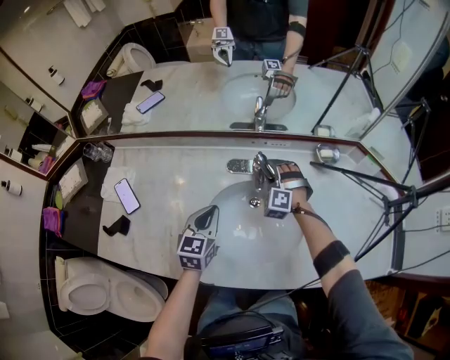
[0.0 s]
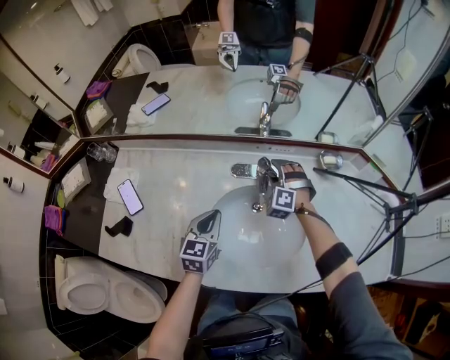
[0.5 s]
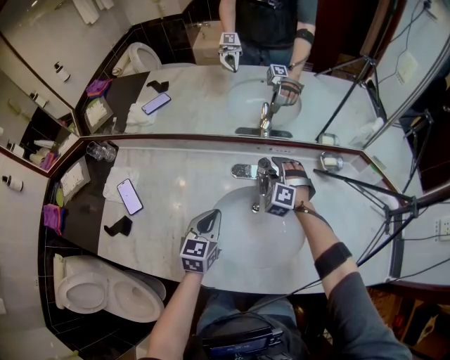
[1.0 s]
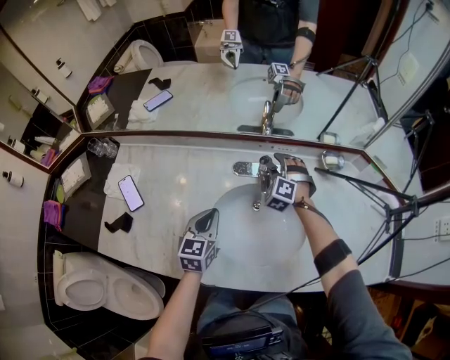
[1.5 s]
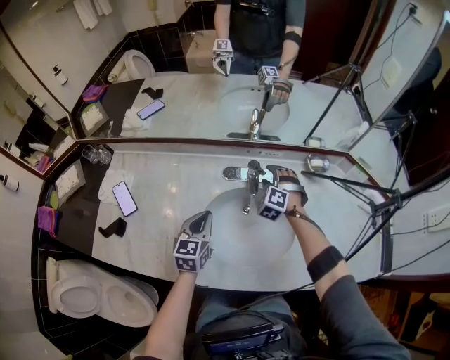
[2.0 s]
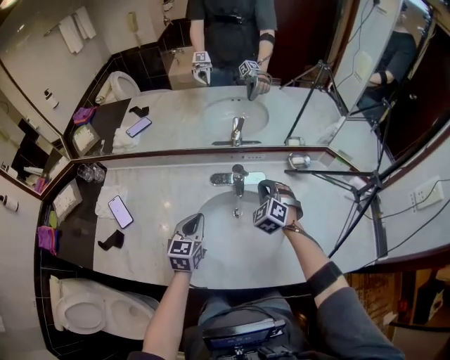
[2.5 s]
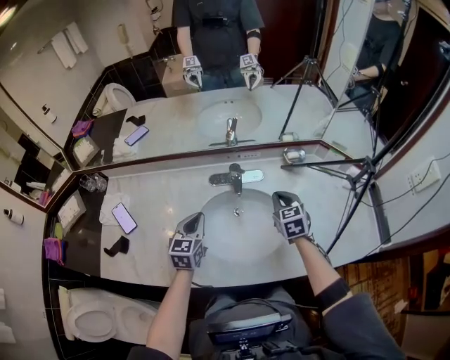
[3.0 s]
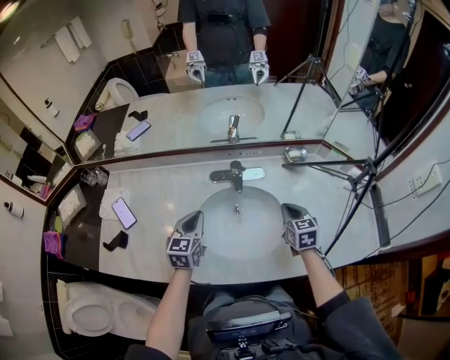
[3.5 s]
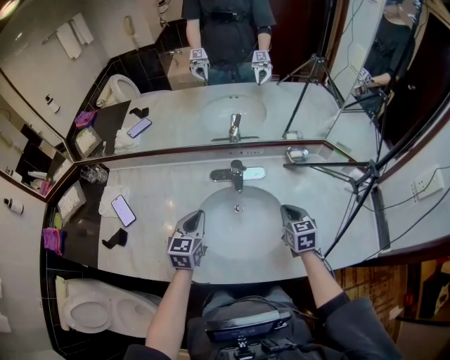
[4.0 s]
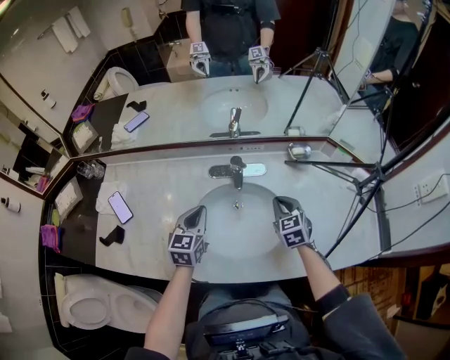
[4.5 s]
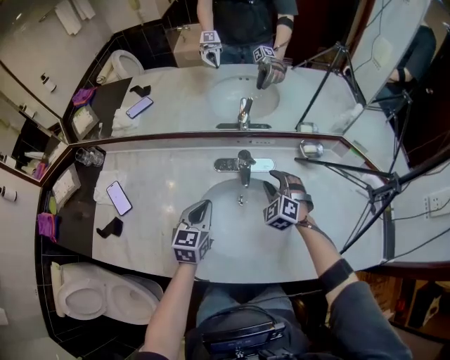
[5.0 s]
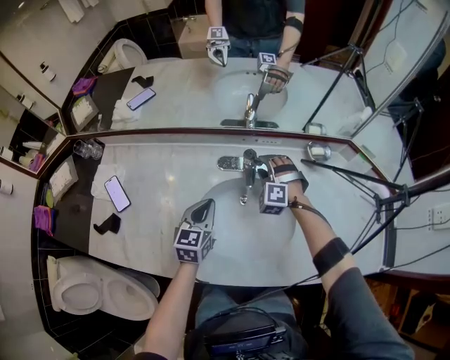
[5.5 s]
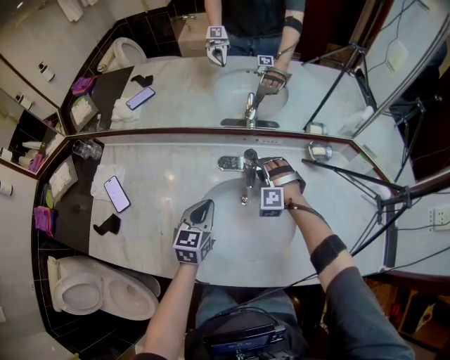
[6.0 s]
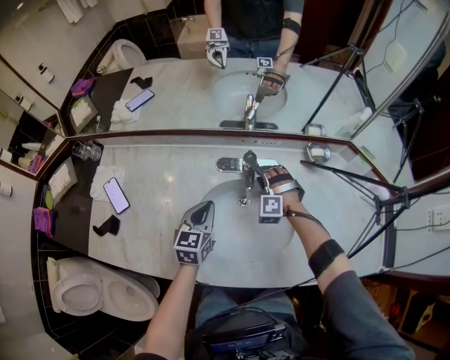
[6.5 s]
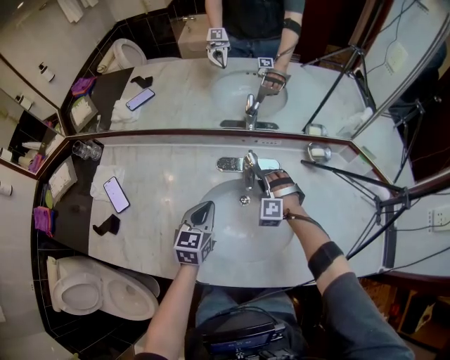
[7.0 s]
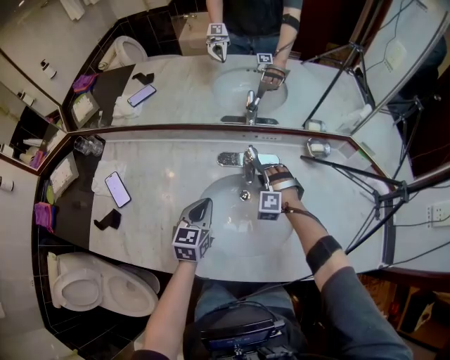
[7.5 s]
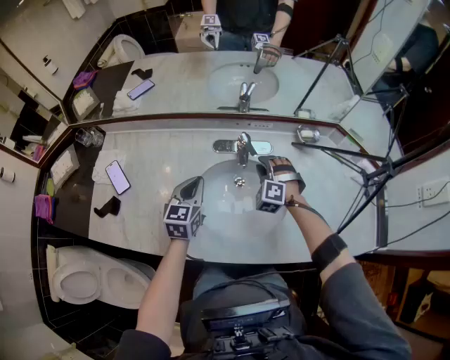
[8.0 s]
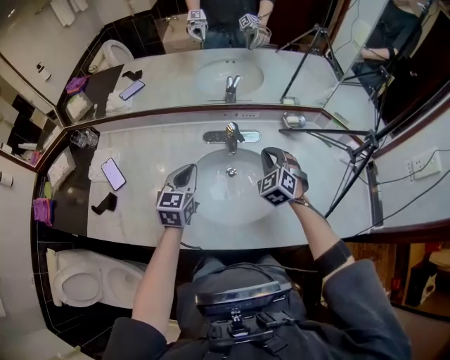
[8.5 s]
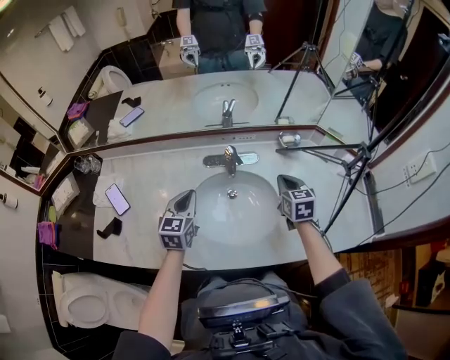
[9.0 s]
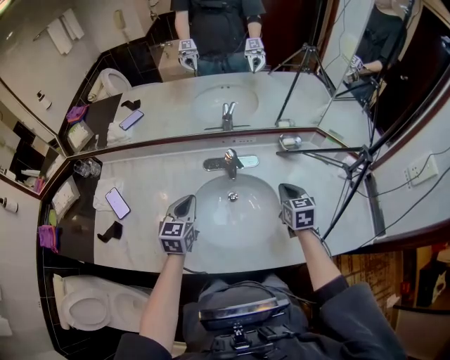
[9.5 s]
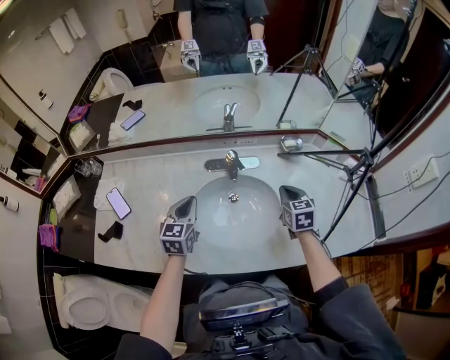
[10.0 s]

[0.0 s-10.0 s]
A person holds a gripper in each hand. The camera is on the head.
0.0 to 2.0 s: The grippers stay close to where they were, moving slightly.
2.0 to 4.0 s: The right gripper goes roughly 20 cm backward and to the right, rotates around the line of its fingers by roughly 70 degrees, clockwise from behind, and closes its fingers.
4.0 to 6.0 s: The left gripper is displaced downward and forward by some 10 cm. Meanwhile the right gripper shifts about 25 cm forward, to the left and downward, rotates around the line of its fingers by some 90 degrees, counterclockwise from behind, and opens its fingers.
6.0 to 8.0 s: The right gripper travels backward by roughly 10 cm.
8.0 to 10.0 s: The right gripper heads to the right, backward and upward, covering roughly 15 cm, rolls clockwise, seen from behind, by some 70 degrees, and closes.

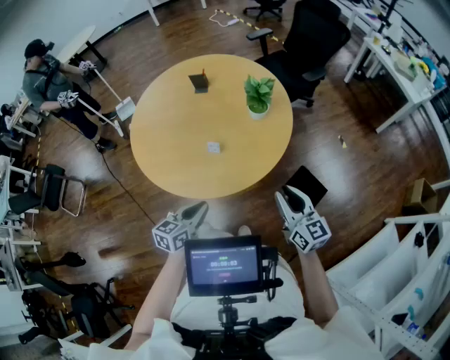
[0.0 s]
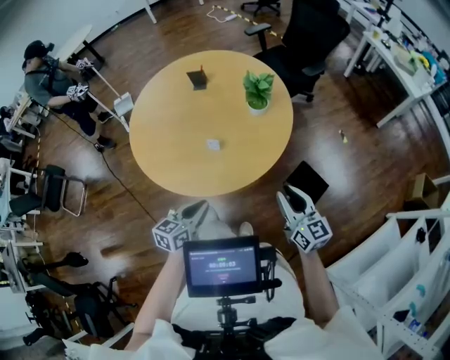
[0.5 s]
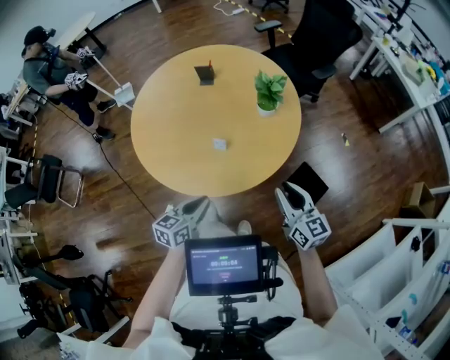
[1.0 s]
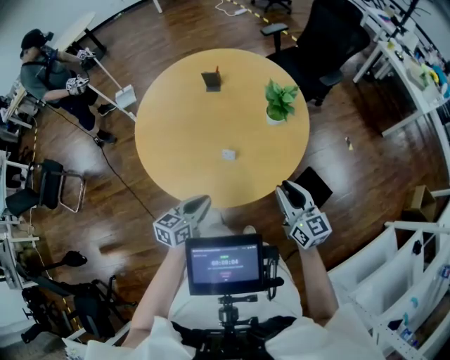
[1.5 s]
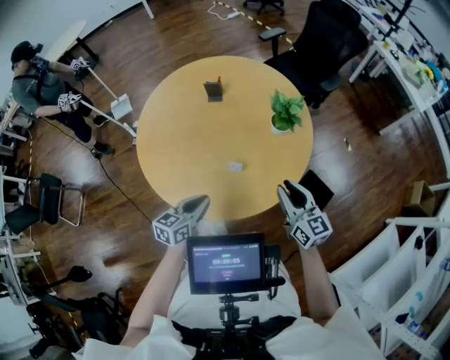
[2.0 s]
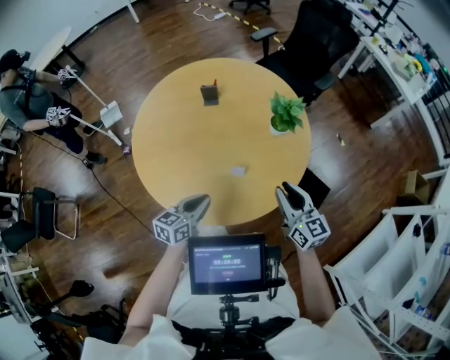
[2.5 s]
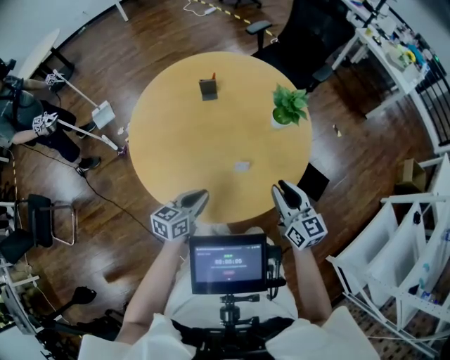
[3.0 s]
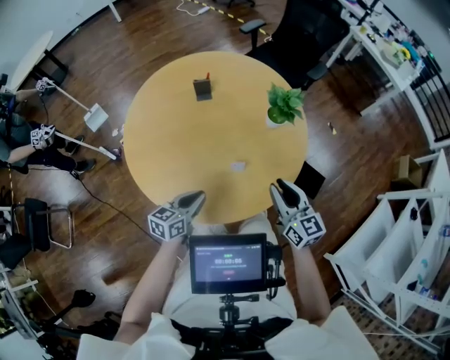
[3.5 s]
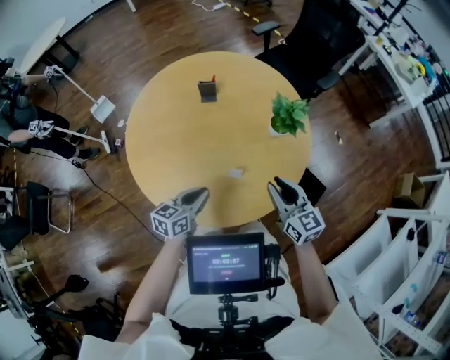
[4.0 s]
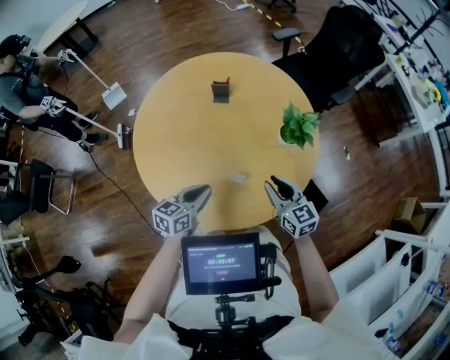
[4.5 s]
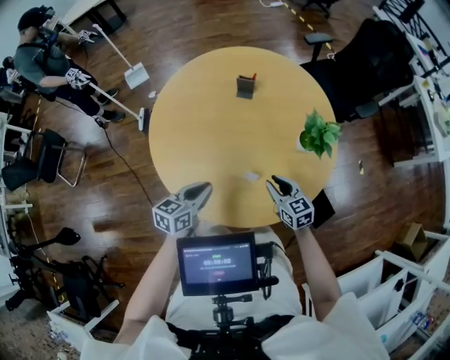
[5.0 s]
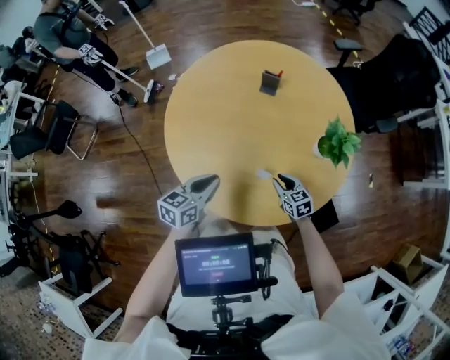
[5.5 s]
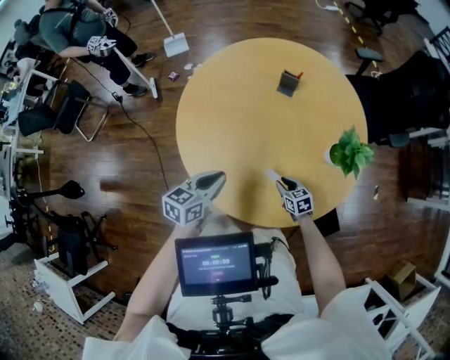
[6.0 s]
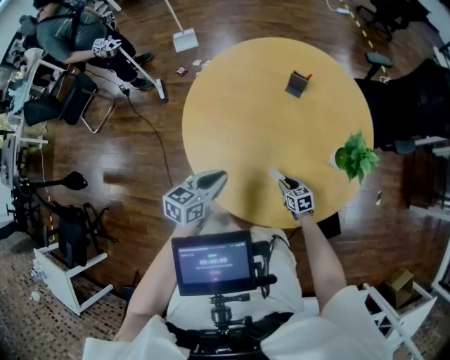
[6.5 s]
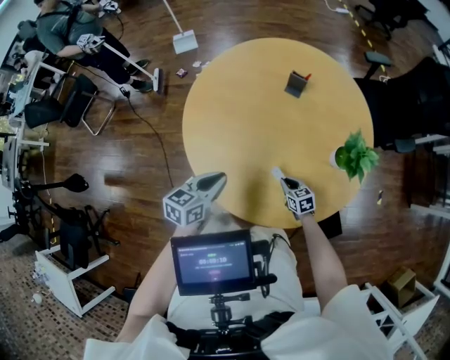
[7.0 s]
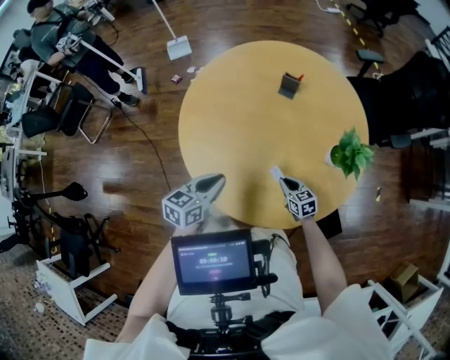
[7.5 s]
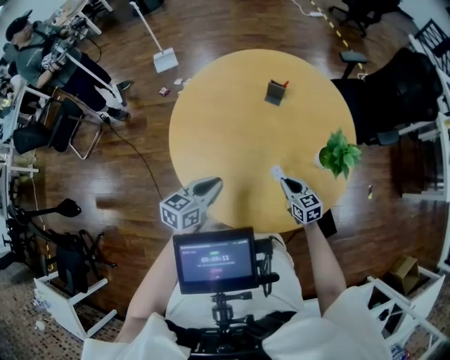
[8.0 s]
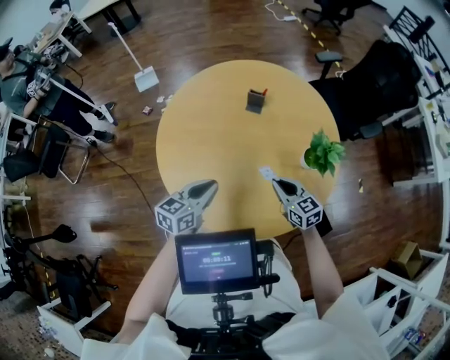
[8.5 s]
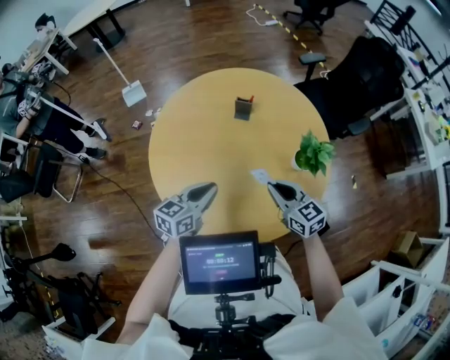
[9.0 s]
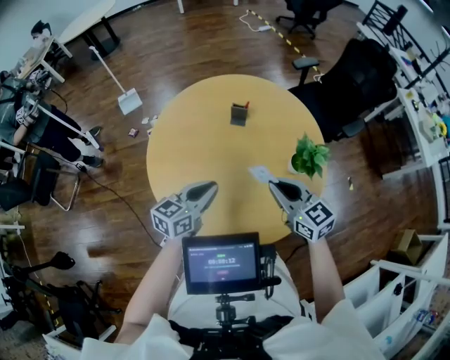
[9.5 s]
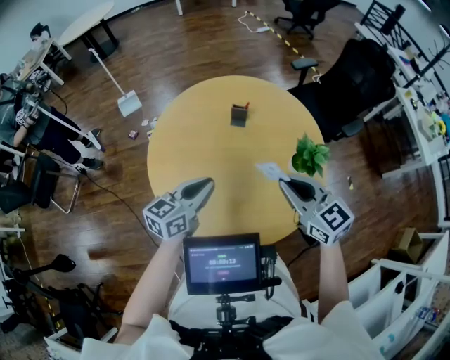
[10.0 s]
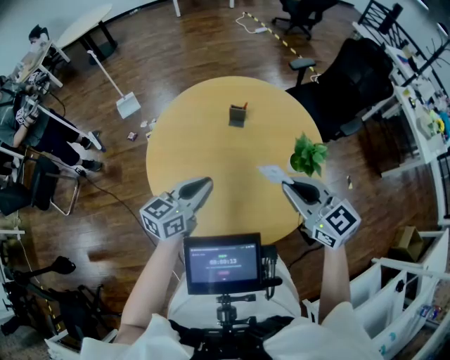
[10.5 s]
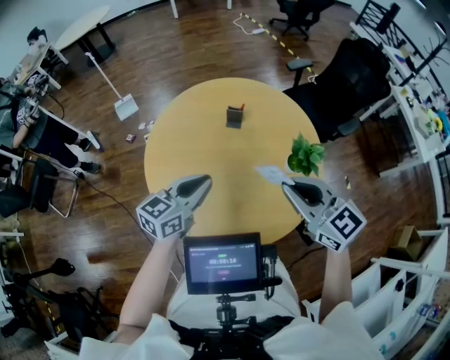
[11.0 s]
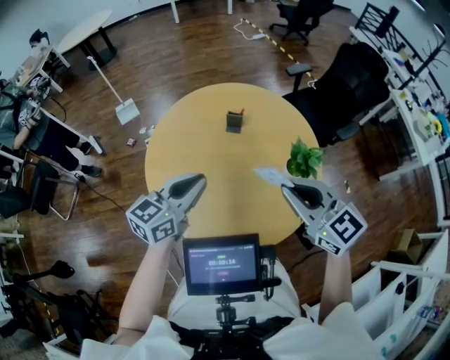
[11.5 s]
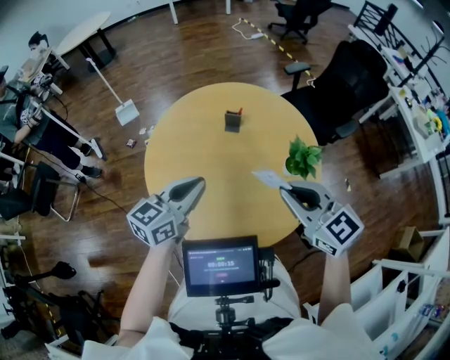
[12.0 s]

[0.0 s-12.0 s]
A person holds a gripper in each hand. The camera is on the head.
0.0 to 2.0 s: The grippers both shift forward and to the left by about 20 cm.
2.0 to 4.0 s: The right gripper travels to the left by roughly 5 cm, while the left gripper goes approximately 10 cm forward.
4.0 to 6.0 s: The right gripper is displaced downward by some 30 cm, and rotates roughly 50 degrees, while the left gripper shifts by about 5 cm, and changes its angle by approximately 20 degrees.
6.0 to 8.0 s: The right gripper is displaced upward by roughly 10 cm.
8.0 to 10.0 s: The left gripper shifts roughly 15 cm upward and forward, while the right gripper goes roughly 30 cm upward.
10.0 to 12.0 s: The two grippers go roughly 5 cm upward.

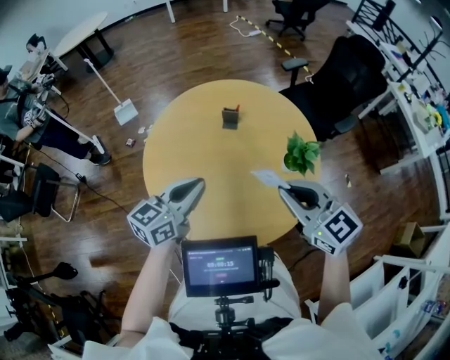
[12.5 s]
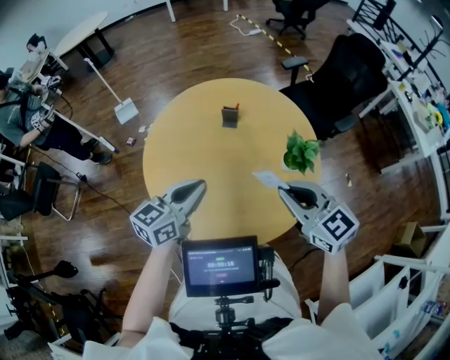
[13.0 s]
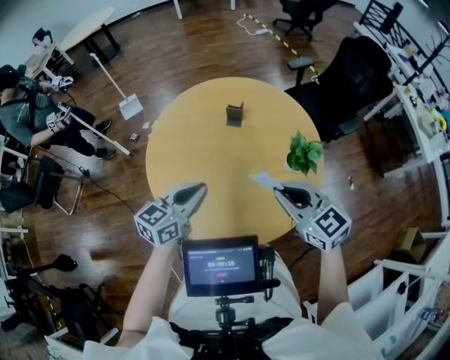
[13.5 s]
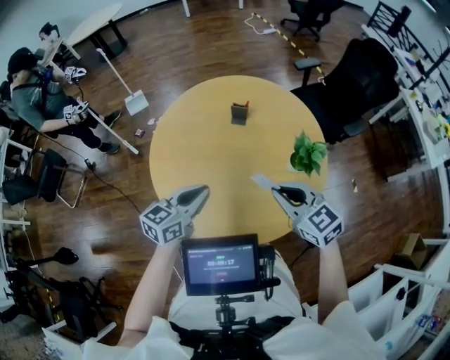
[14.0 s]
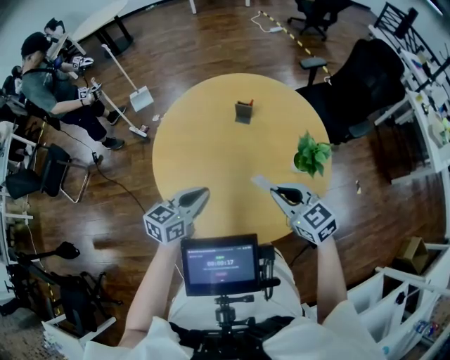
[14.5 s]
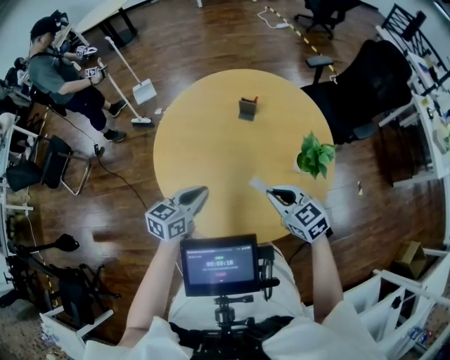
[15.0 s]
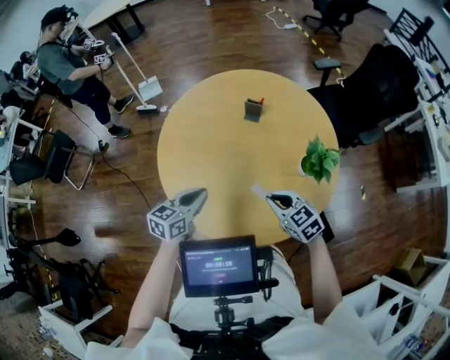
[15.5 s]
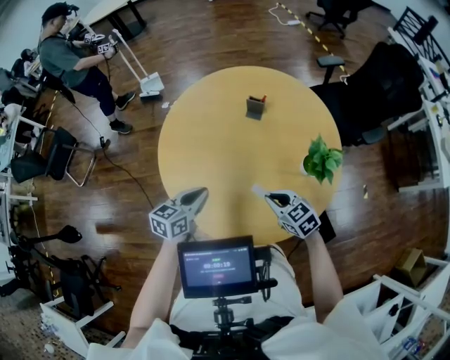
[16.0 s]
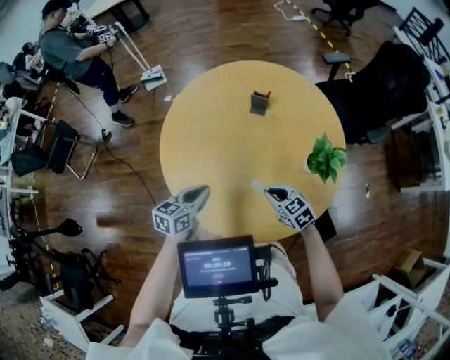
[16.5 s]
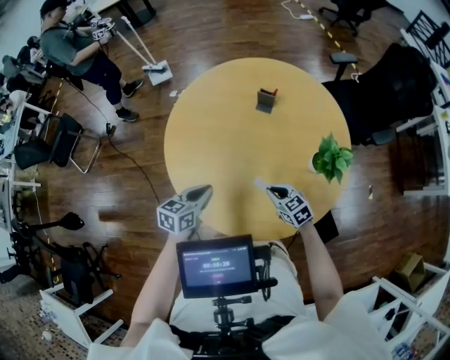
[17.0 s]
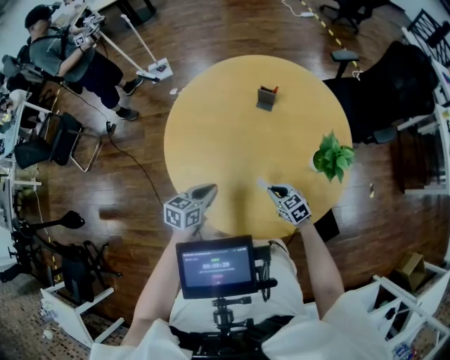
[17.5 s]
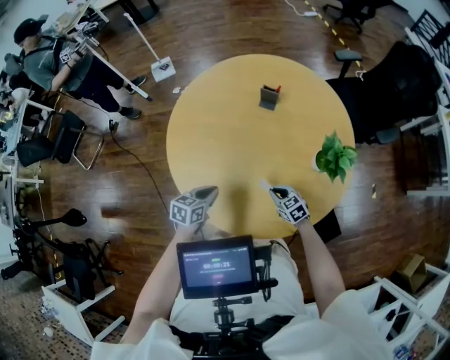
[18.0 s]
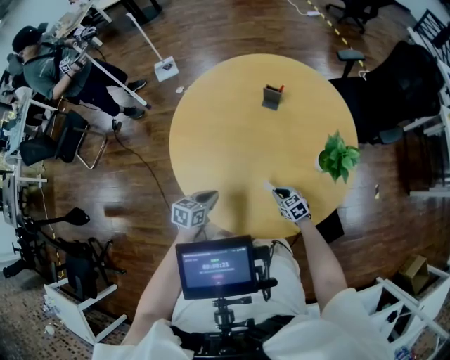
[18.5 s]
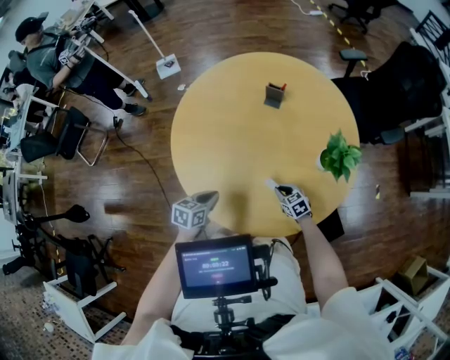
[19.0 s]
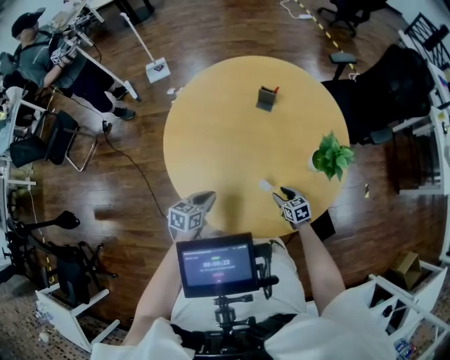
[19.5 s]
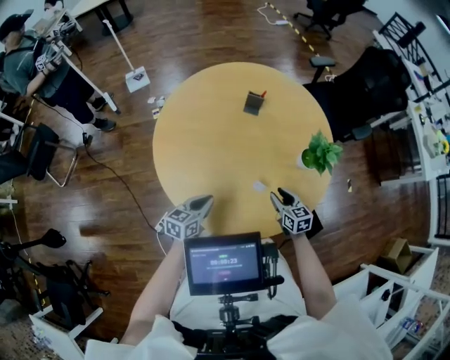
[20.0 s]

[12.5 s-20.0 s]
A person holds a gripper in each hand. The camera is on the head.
12.5 to 14.5 s: The grippers both shift downward by roughly 10 cm.
14.5 to 16.5 s: The right gripper shifts some 20 cm downward. The left gripper travels downward by some 10 cm.
16.5 to 18.0 s: Both grippers move downward, approximately 10 cm.
18.0 to 20.0 s: The right gripper moves upward, some 10 cm, rotates approximately 30 degrees, and opens.
